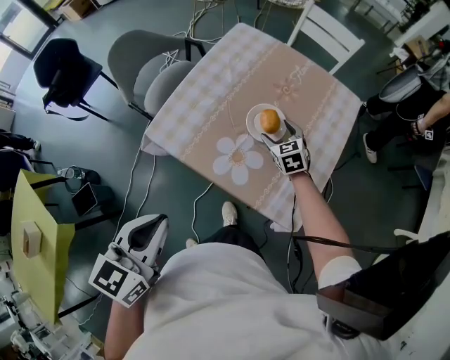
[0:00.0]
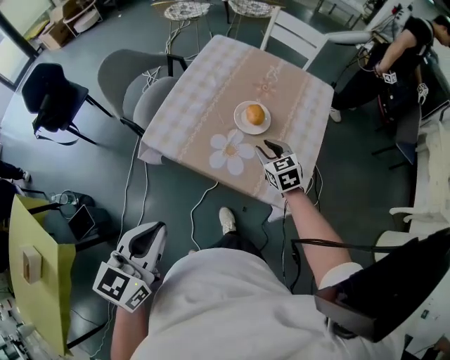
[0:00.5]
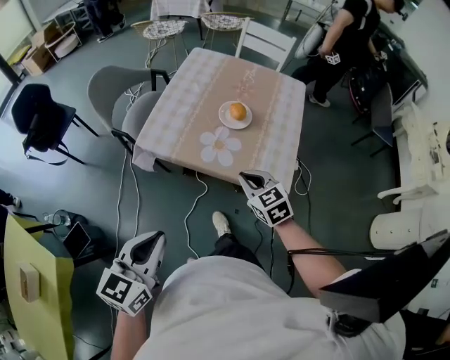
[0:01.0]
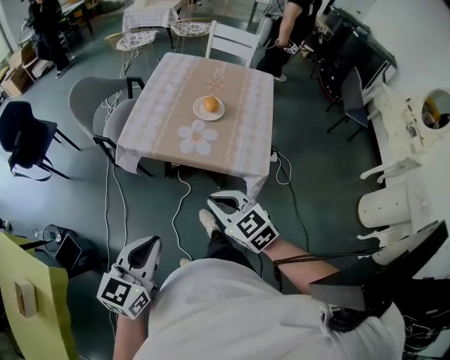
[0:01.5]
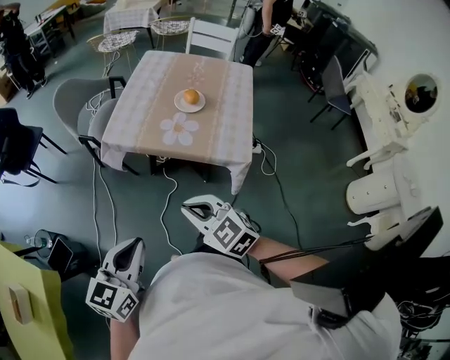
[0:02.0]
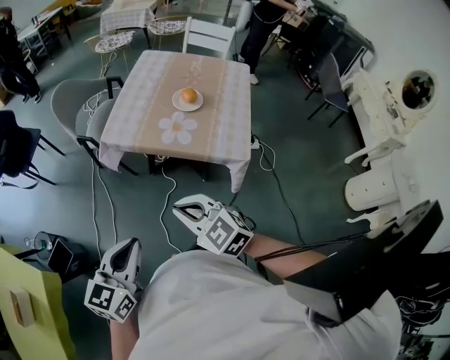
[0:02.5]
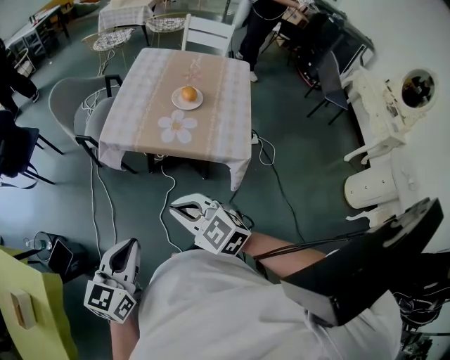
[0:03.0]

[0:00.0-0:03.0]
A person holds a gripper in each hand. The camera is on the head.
0:00.0 to 0:01.5: The right gripper moves backward, about 40 cm, and closes. The left gripper heads backward, covering roughly 20 cm.
0:01.5 to 0:03.0: The right gripper goes approximately 10 cm to the left and backward.

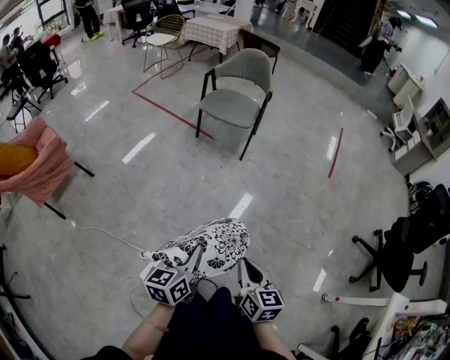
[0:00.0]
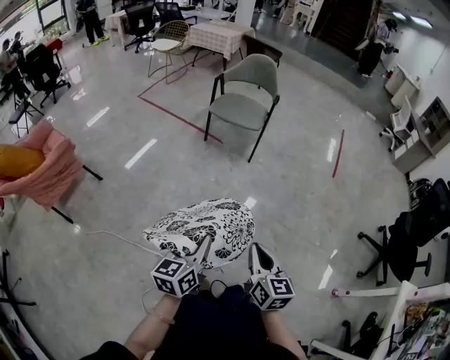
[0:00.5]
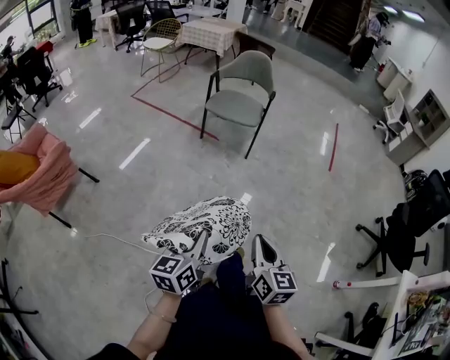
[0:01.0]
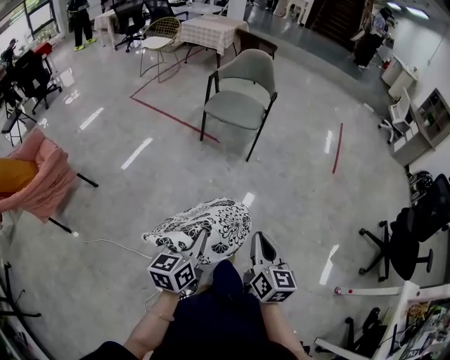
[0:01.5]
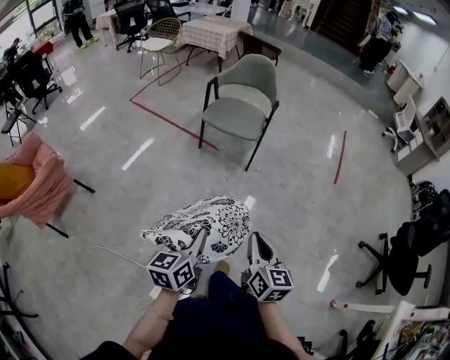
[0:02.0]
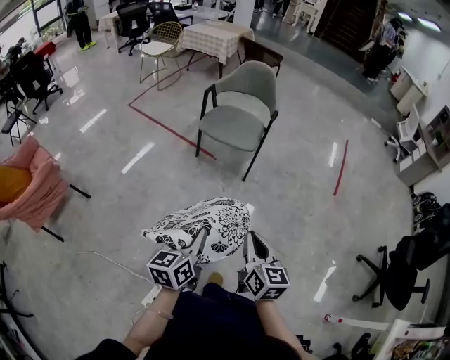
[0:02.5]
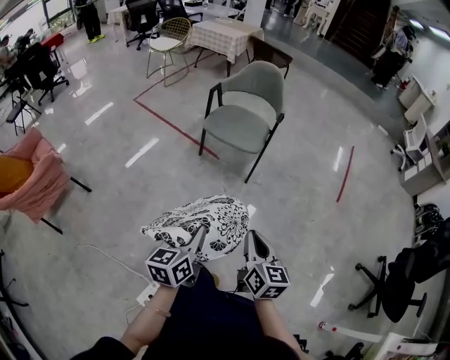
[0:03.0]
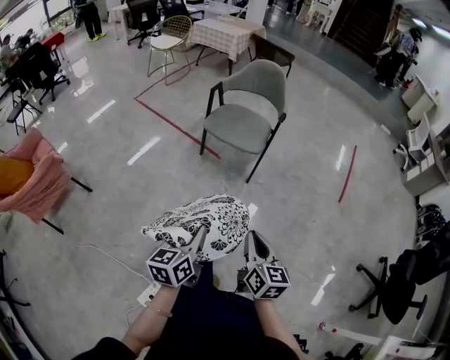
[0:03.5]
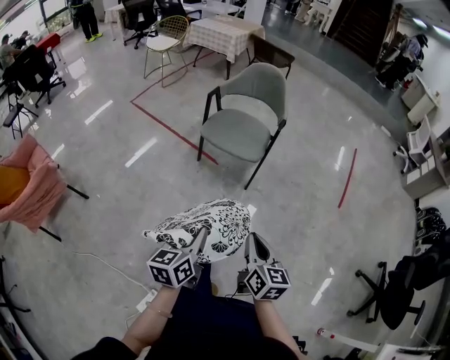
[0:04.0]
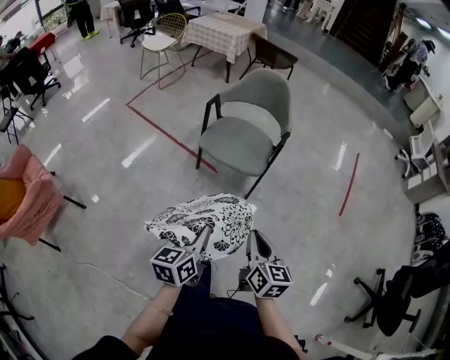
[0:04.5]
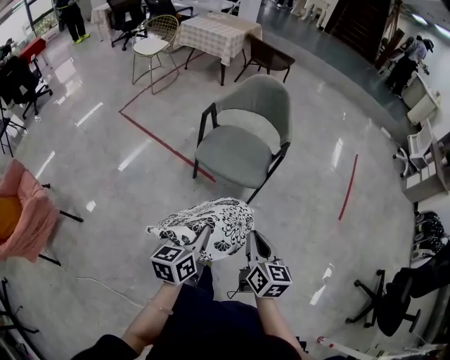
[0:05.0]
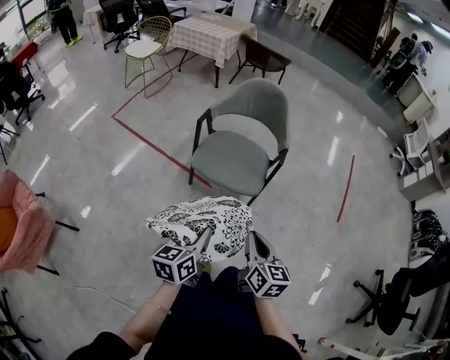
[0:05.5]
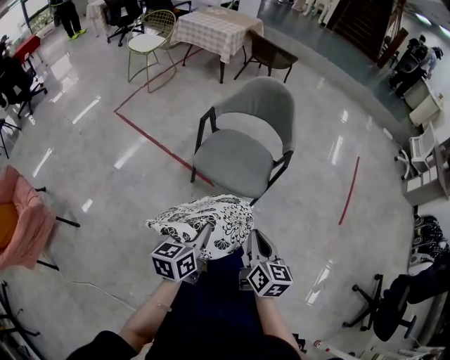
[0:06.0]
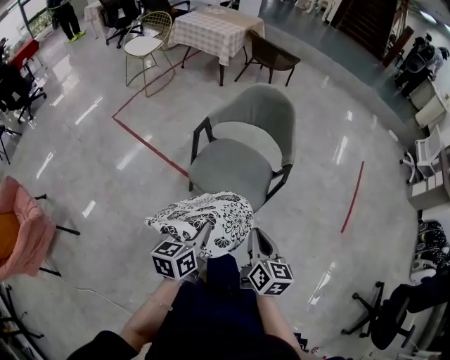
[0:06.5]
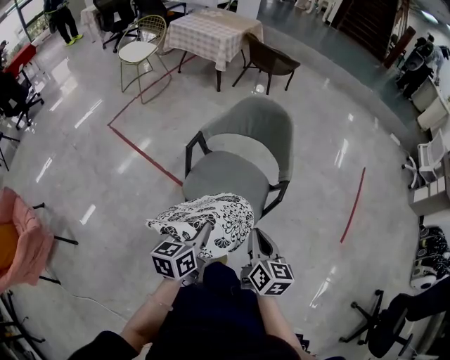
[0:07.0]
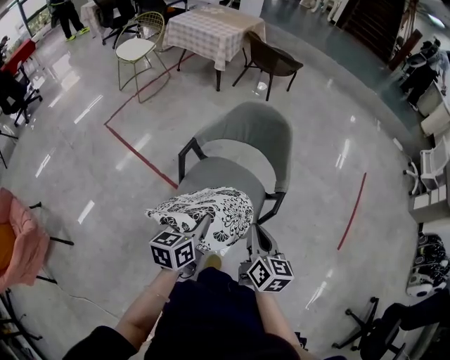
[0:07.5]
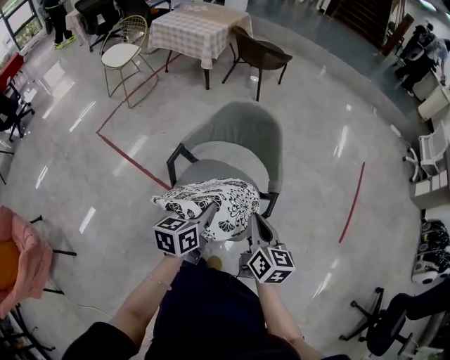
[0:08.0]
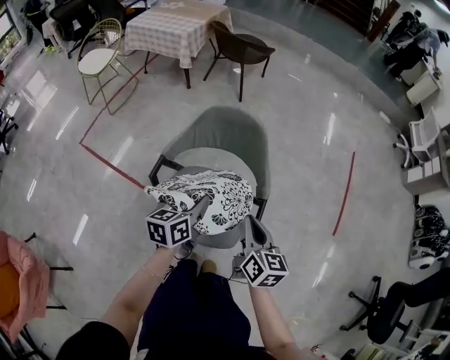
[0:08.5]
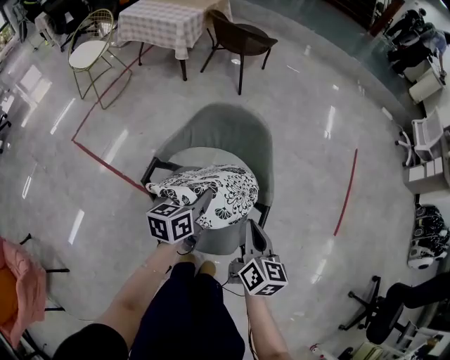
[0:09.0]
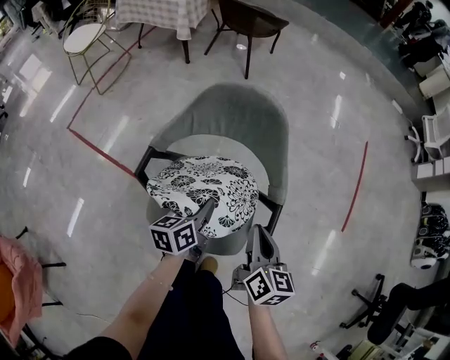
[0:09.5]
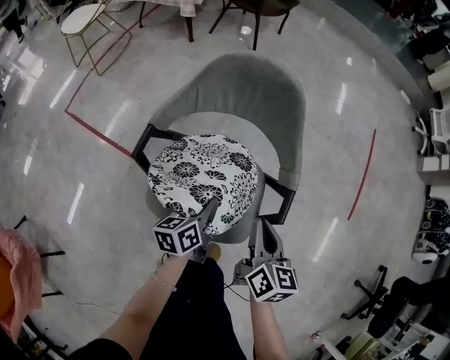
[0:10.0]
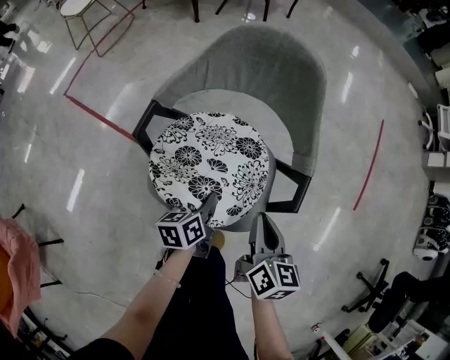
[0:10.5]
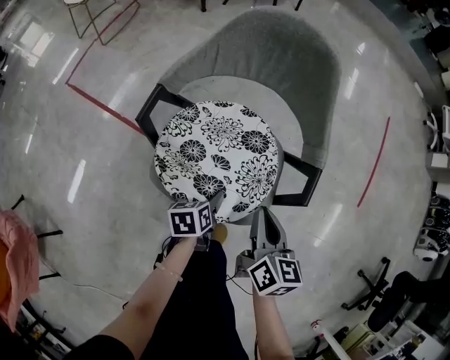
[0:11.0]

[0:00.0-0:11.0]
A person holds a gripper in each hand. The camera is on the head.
0:00.0 to 0:02.0: The left gripper shifts about 15 cm forward and to the left; the right gripper shifts about 15 cm forward.
0:02.0 to 0:03.5: Both grippers move forward, some 10 cm.
0:03.5 to 0:05.5: Both grippers travel together forward, some 30 cm.
0:05.5 to 0:07.5: Both grippers move forward, roughly 25 cm.
0:07.5 to 0:09.0: The left gripper heads forward, covering roughly 20 cm. The right gripper shifts approximately 10 cm forward.
0:09.0 to 0:11.0: The left gripper goes about 30 cm downward and backward, angles its fingers downward, by roughly 30 degrees, and opens up. Meanwhile the right gripper goes roughly 15 cm downward.

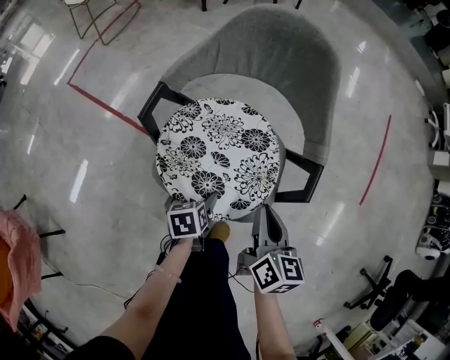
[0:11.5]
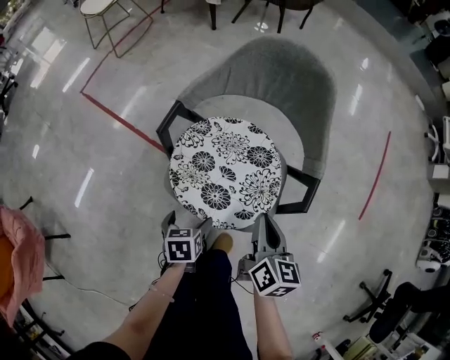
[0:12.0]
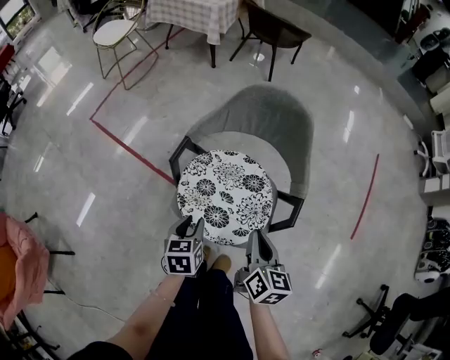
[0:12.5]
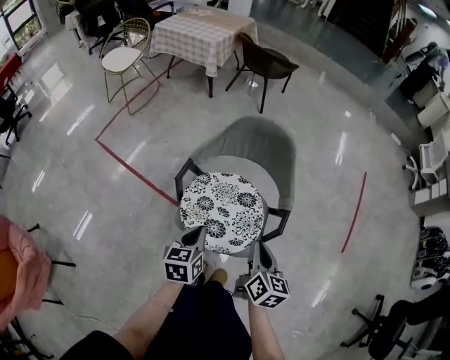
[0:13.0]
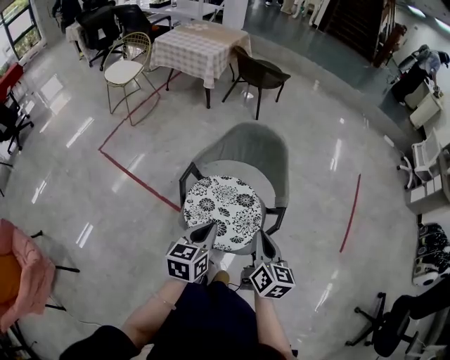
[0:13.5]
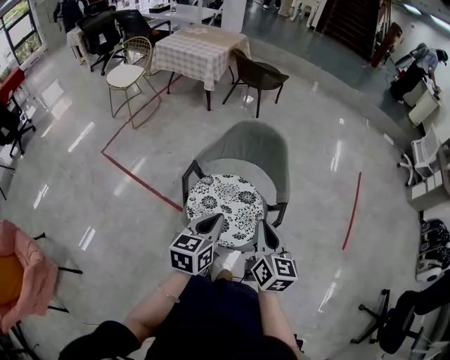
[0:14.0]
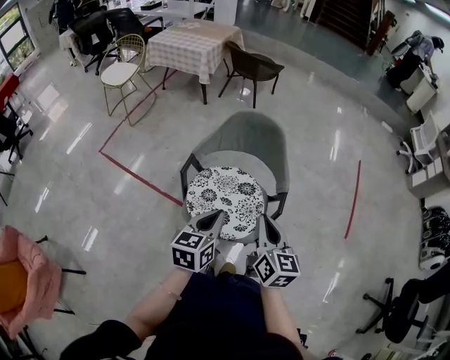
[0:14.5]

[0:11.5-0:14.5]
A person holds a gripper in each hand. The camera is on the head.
0:11.5 to 0:13.0: The left gripper moves upward, about 30 cm, rotates some 30 degrees, and closes its fingers. The right gripper is displaced upward by about 15 cm.
0:13.0 to 0:14.5: The grippers both shift upward by some 10 cm.

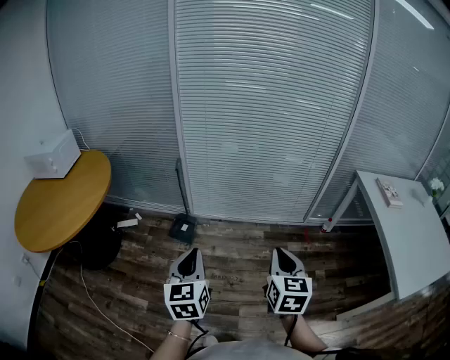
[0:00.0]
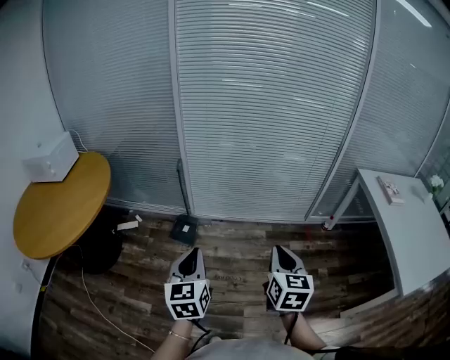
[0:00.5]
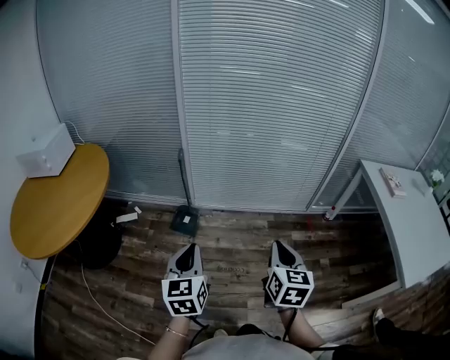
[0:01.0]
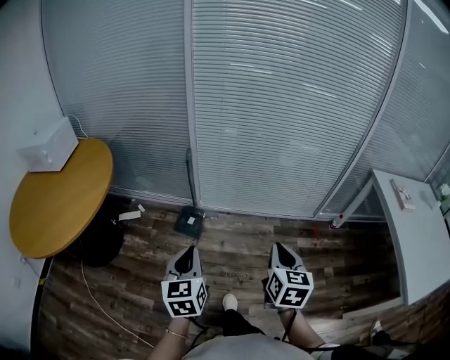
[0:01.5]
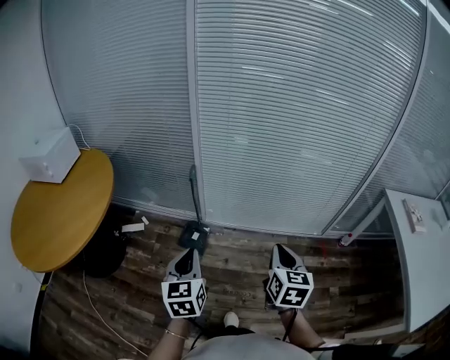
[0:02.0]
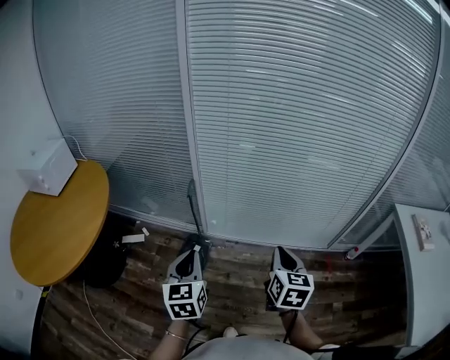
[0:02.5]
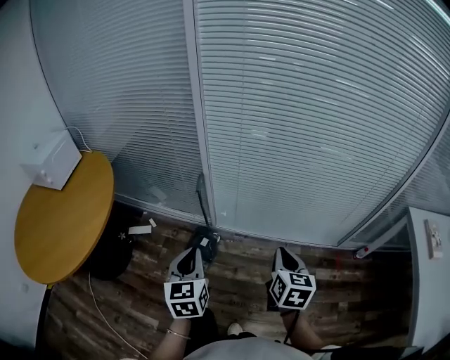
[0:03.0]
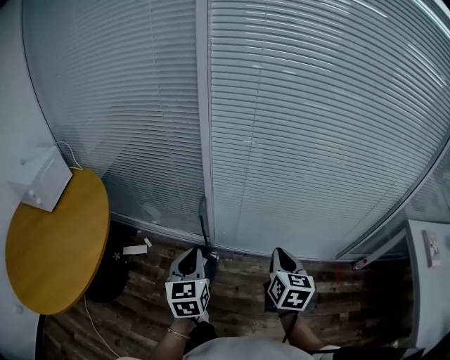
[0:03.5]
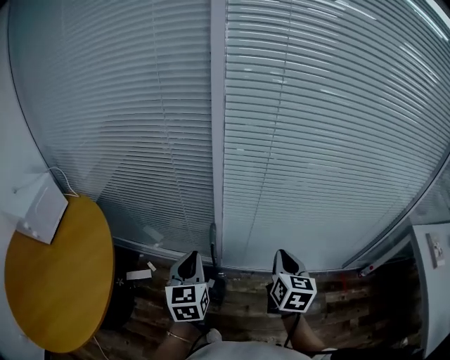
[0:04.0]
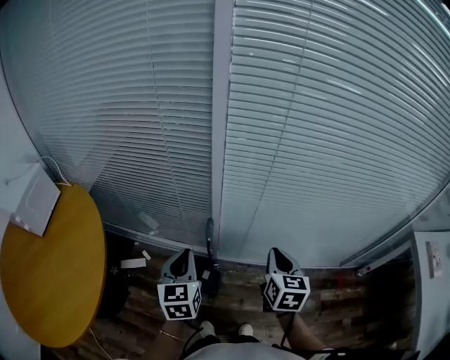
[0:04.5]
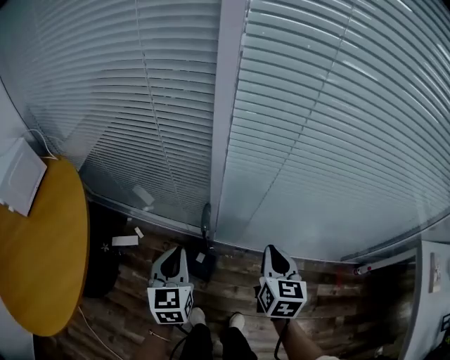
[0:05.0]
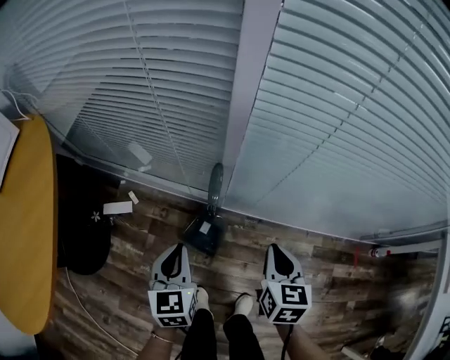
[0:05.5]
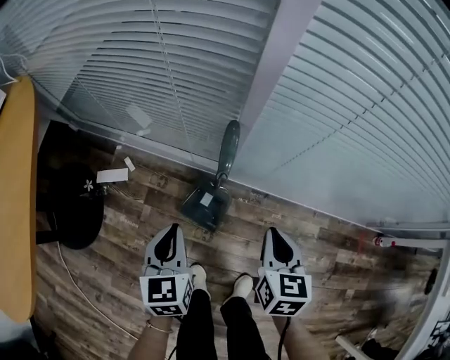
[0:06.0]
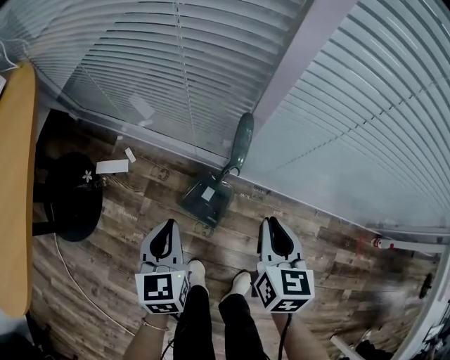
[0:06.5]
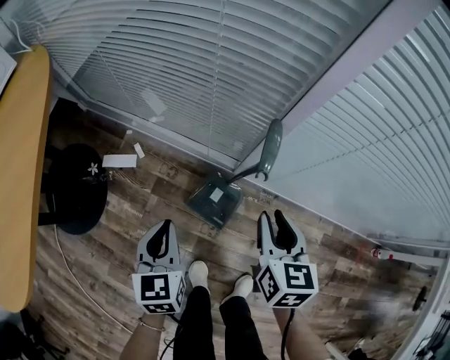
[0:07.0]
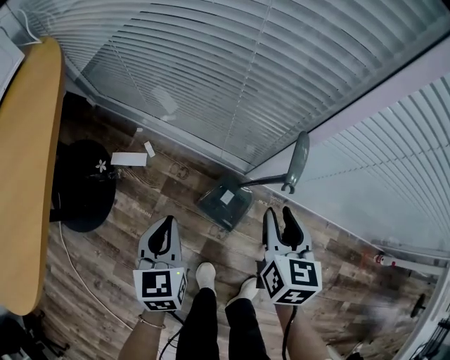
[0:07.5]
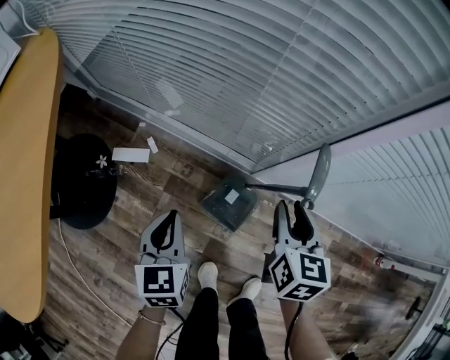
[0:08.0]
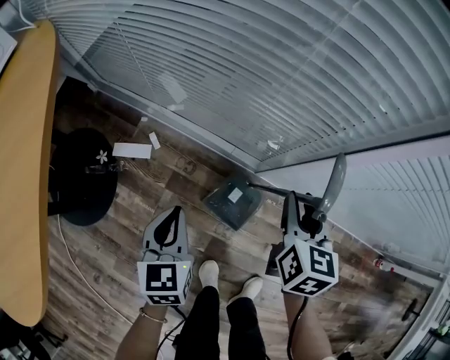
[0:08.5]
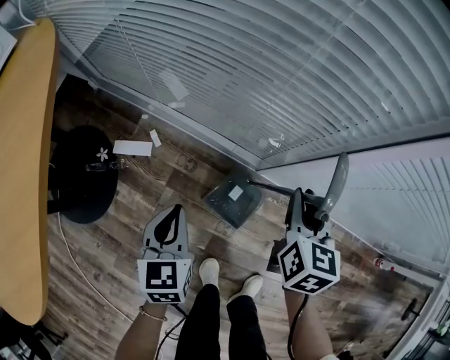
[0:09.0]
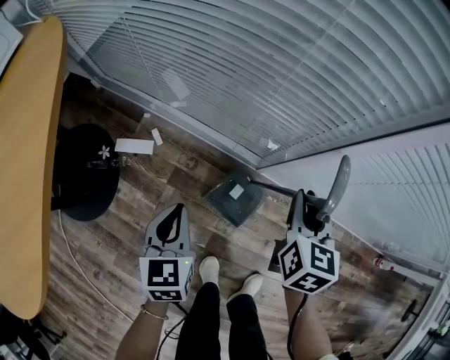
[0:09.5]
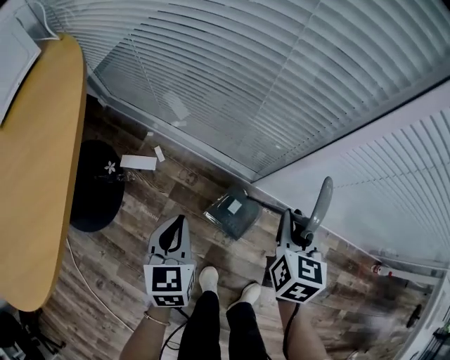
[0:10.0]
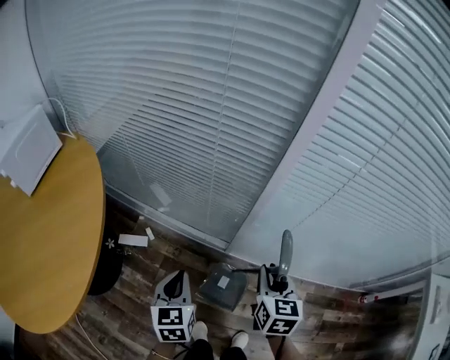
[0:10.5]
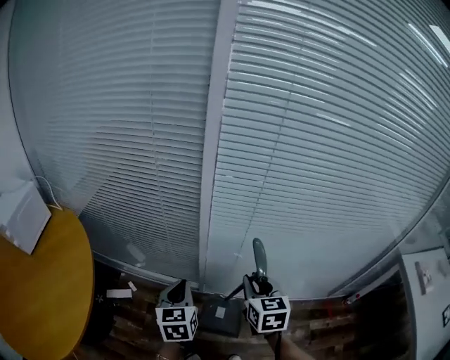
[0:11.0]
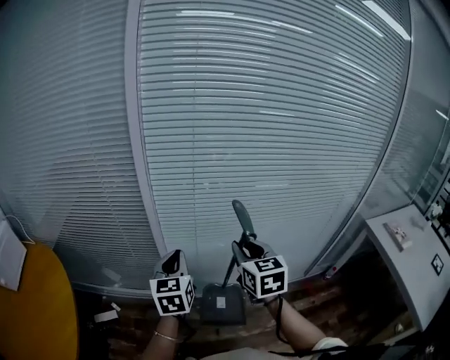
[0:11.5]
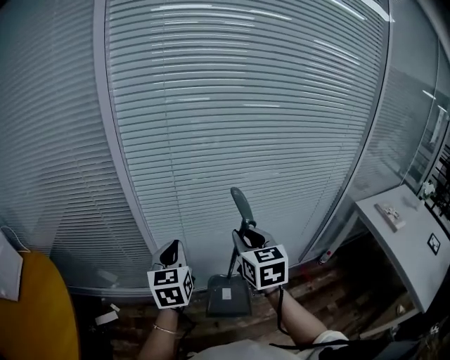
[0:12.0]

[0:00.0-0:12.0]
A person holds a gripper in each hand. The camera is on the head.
0:00.0 to 0:02.0: The grippers both shift forward and to the left by approximately 20 cm.
0:02.0 to 0:04.0: The left gripper moves forward, some 30 cm, while the right gripper travels forward and to the left by about 35 cm.
0:04.0 to 0:06.0: Both grippers move downward, roughly 30 cm. The right gripper changes its angle by some 20 degrees.
0:06.0 to 0:08.0: The left gripper is displaced to the left by roughly 10 cm; the right gripper travels forward and to the left by approximately 15 cm, and opens its fingers.
0:08.0 to 0:10.0: The grippers move only a little.
0:10.0 to 0:12.0: The two grippers go some 50 cm upward and to the right. The left gripper rotates approximately 40 degrees. Meanwhile the right gripper swivels about 20 degrees.
